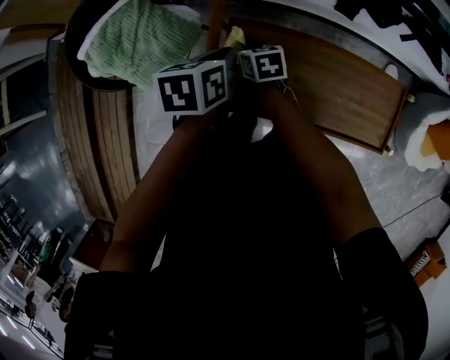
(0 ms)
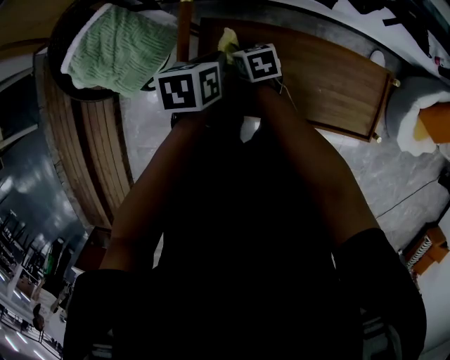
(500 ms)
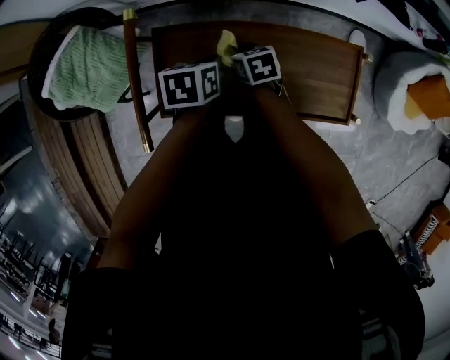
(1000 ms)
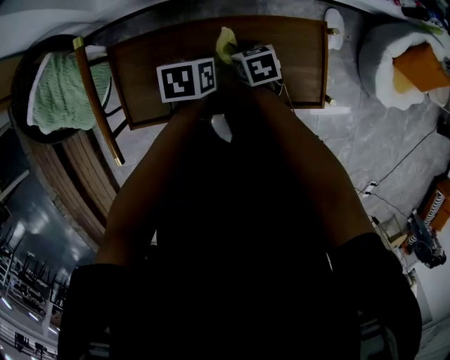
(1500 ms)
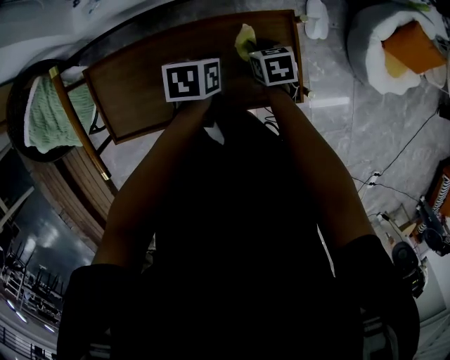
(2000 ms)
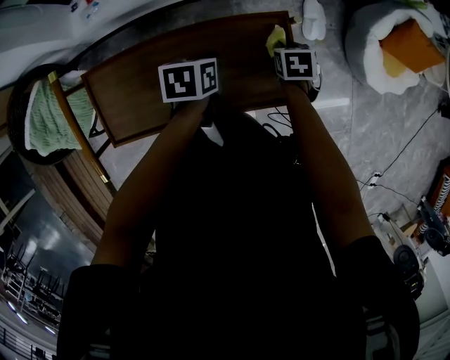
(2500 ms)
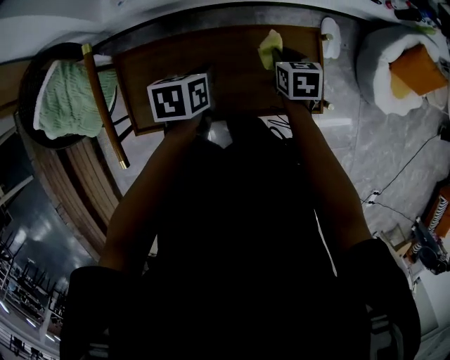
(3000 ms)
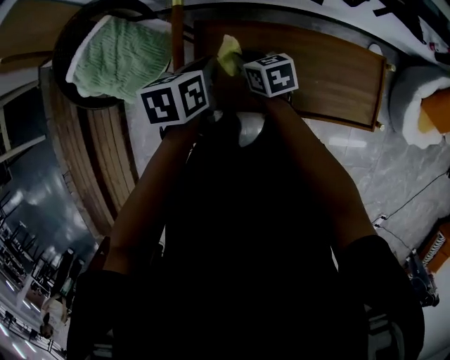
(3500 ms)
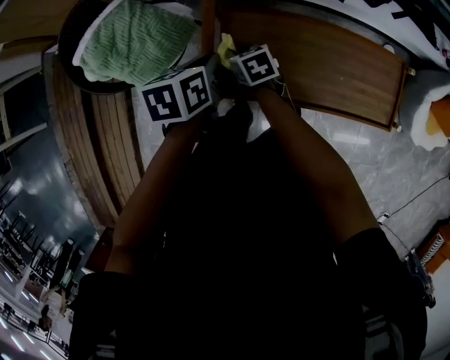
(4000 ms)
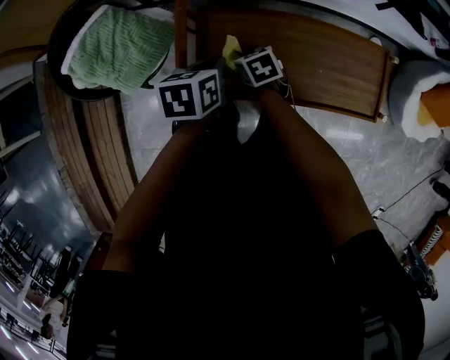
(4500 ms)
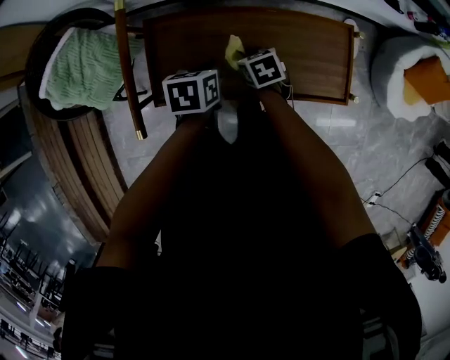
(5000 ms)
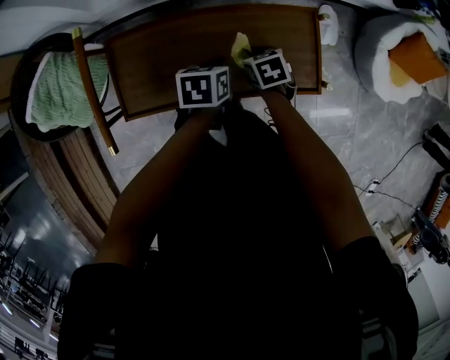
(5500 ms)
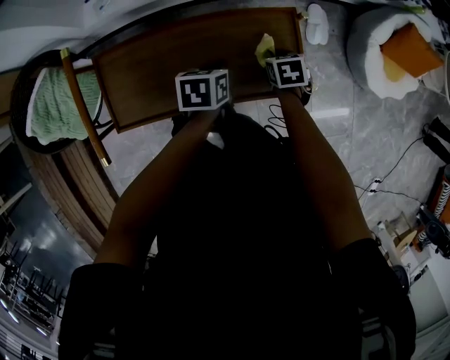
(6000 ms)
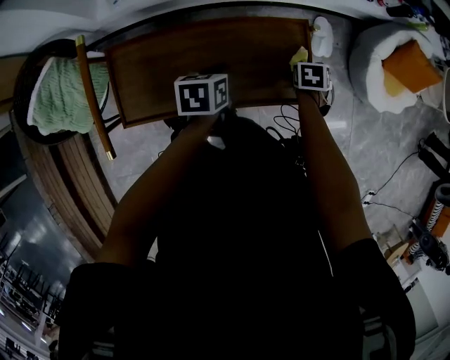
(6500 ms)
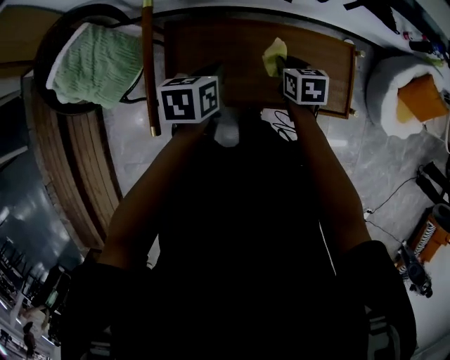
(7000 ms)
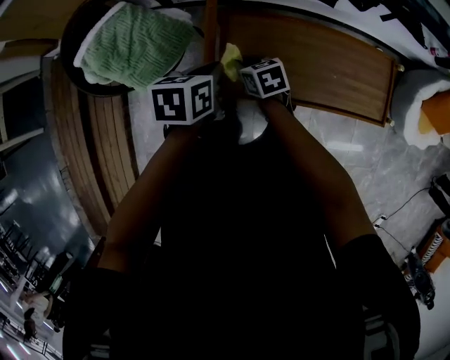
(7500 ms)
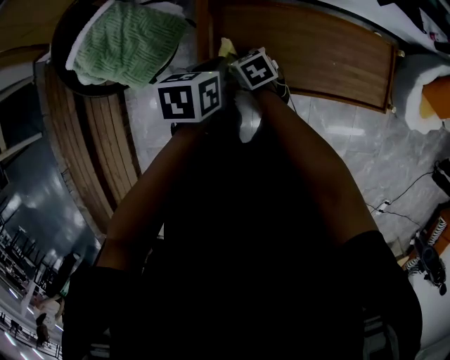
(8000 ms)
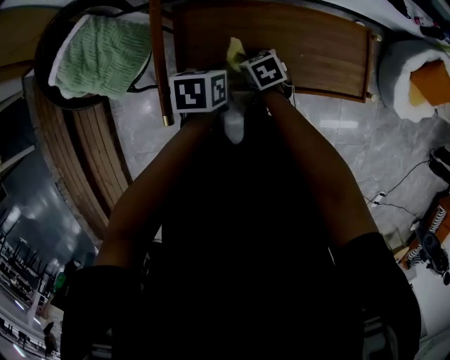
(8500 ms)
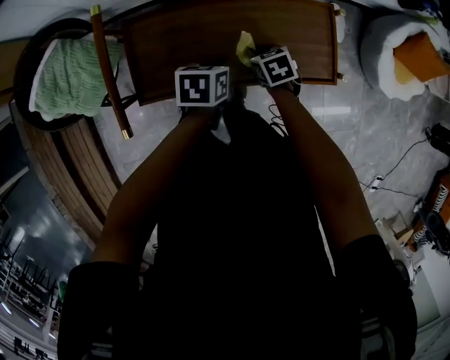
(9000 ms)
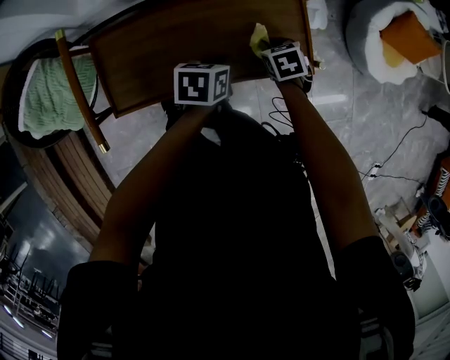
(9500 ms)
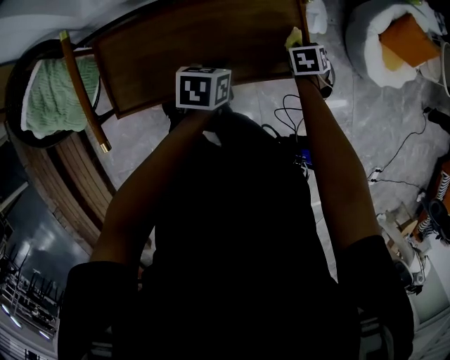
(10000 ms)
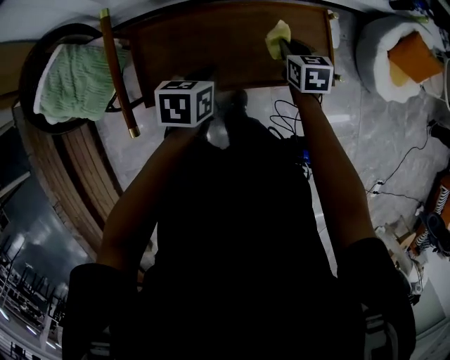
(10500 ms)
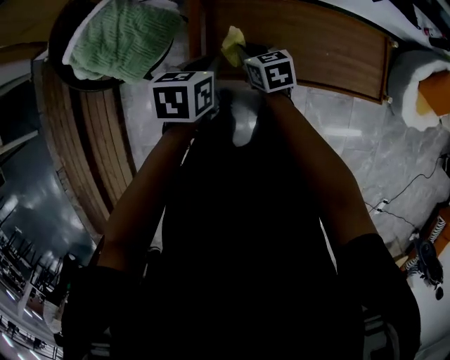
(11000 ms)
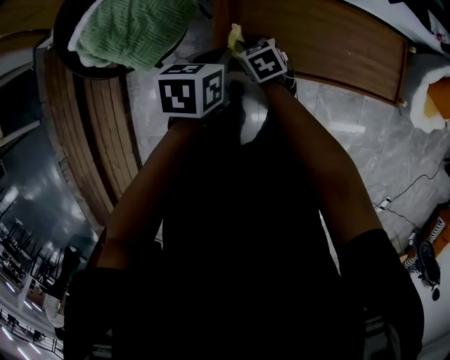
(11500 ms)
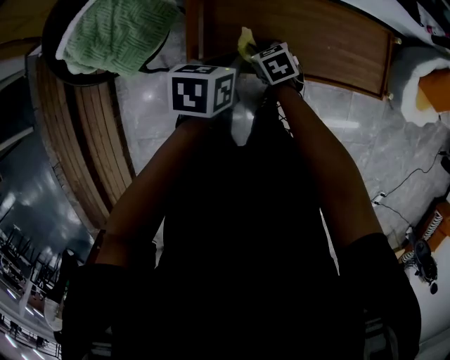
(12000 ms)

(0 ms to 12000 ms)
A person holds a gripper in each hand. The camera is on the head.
0 ms - 2000 ms: The right gripper moves some 50 cm, and swivels about 20 degrees. The left gripper ends up some 40 cm from where it was, and rotates roughly 20 degrees.
2000 ms - 4000 ms: The pair of grippers is taken roughly 40 cm. The left gripper changes its angle by roughly 20 degrees; the right gripper changes its angle by some 30 degrees.
4000 ms - 6000 ms: The right gripper shifts by about 50 cm, and turns by approximately 30 degrees. The left gripper shifts by about 40 cm.
6000 ms - 8000 ms: The right gripper travels upward and back again, approximately 5 cm each way, and changes its angle by approximately 30 degrees. Meanwhile the left gripper ends up about 35 cm from where it was.
8000 ms - 10000 ms: The left gripper shifts by approximately 35 cm, while the right gripper changes place by roughly 50 cm, and swivels some 40 degrees.
10000 ms - 12000 ms: The left gripper ends up approximately 30 cm from where it was; the right gripper goes upward and returns, about 5 cm each way, and swivels approximately 40 degrees.

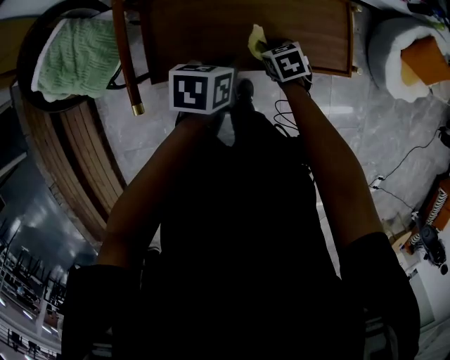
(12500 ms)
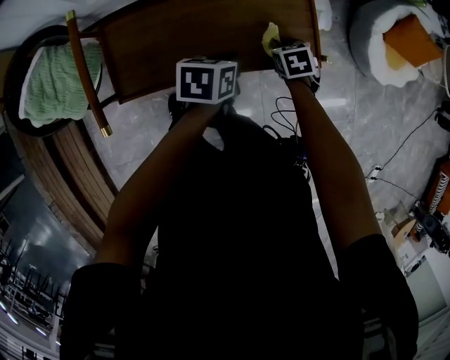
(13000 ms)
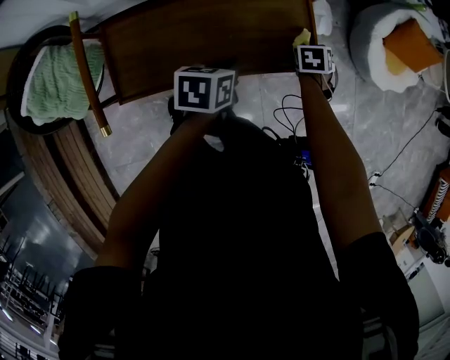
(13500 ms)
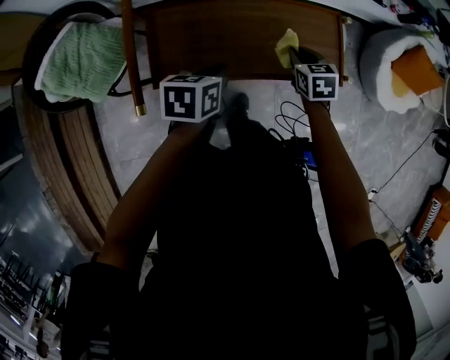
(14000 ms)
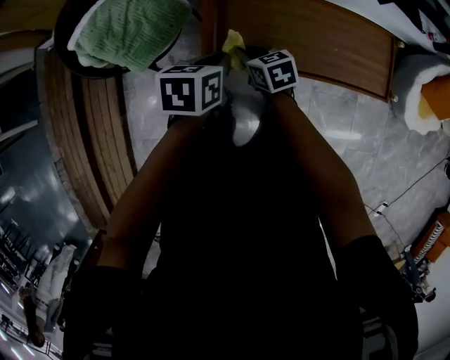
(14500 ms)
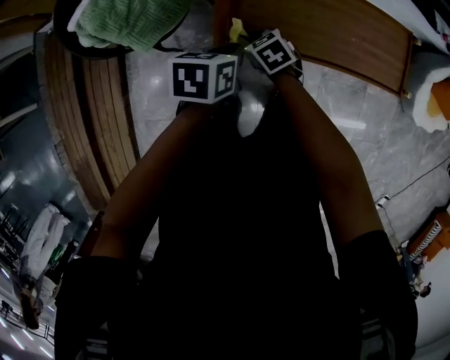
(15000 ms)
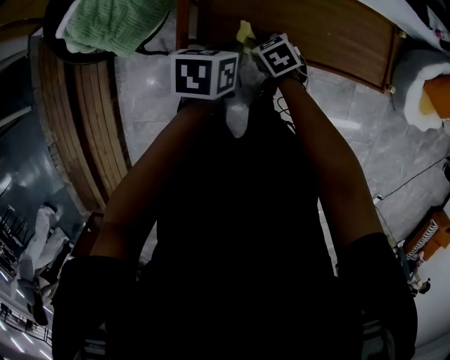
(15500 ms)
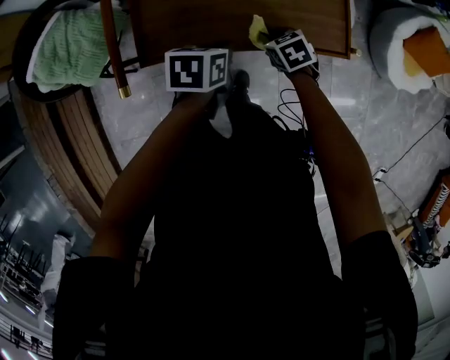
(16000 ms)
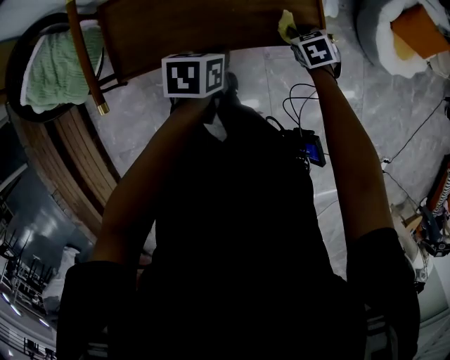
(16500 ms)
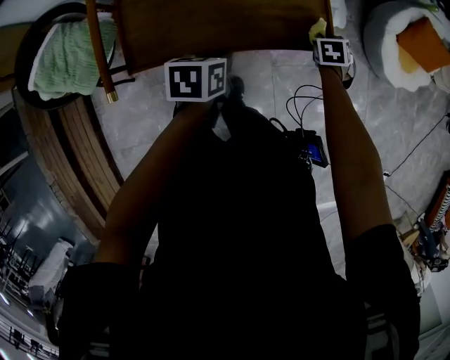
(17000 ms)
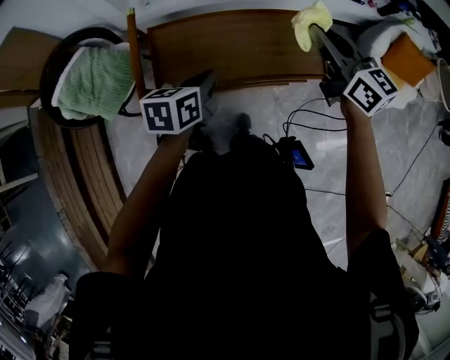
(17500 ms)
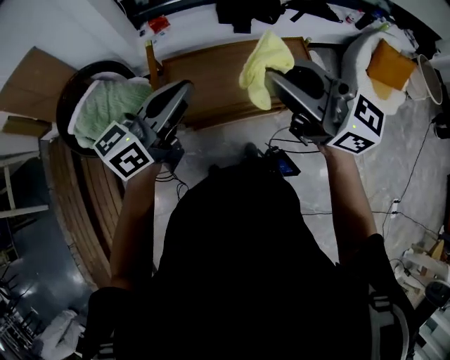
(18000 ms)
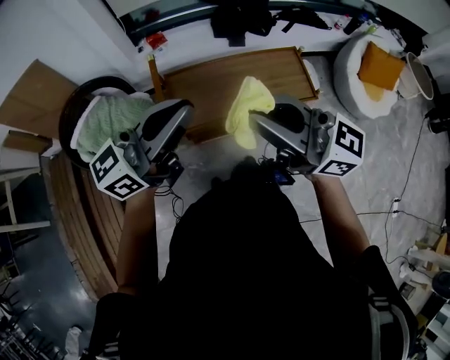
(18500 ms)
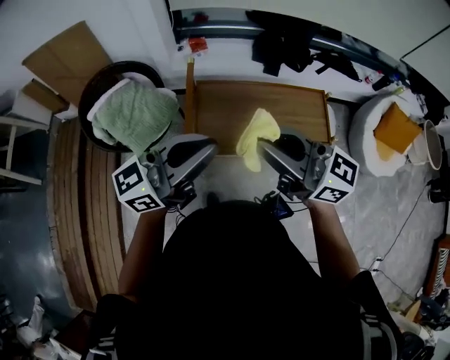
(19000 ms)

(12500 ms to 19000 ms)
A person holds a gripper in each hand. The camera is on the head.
12500 ms - 14500 ms: The left gripper changes place by roughly 20 cm; the right gripper ends up roughly 25 cm from where it was.
14500 ms - 17000 ms: The left gripper shifts by some 30 cm, while the right gripper shifts by about 50 cm, and rotates roughly 50 degrees.
17000 ms - 19000 ms: The right gripper changes place by roughly 70 cm, and tilts its fingers roughly 70 degrees upward; the left gripper shifts approximately 35 cm upward, and tilts its fingers approximately 70 degrees upward.

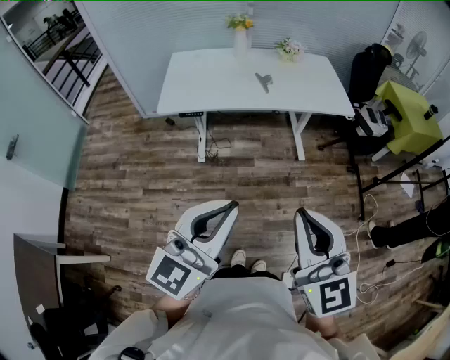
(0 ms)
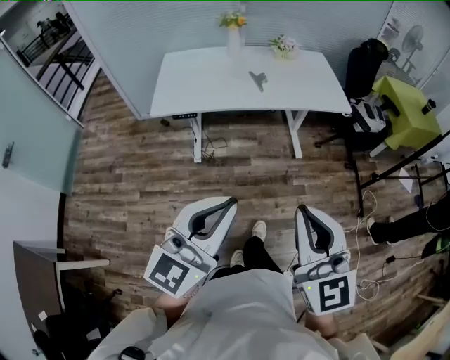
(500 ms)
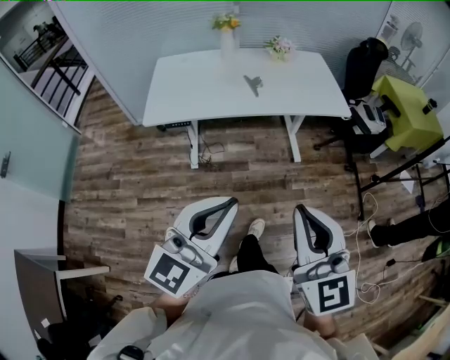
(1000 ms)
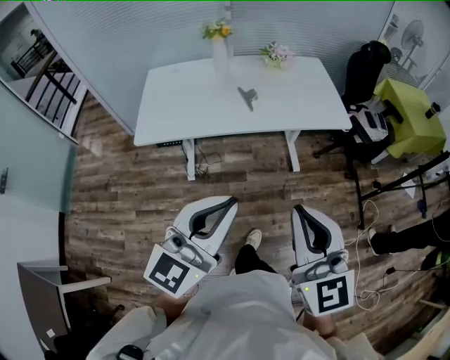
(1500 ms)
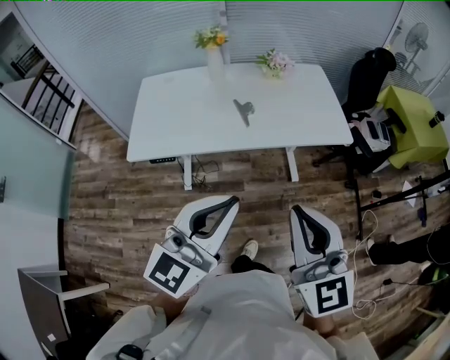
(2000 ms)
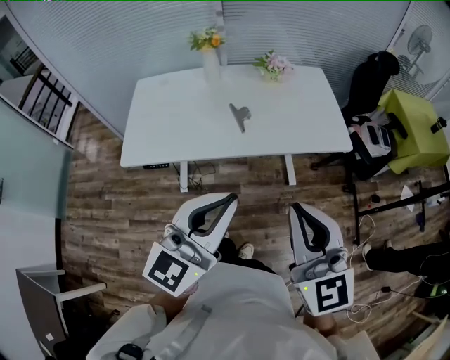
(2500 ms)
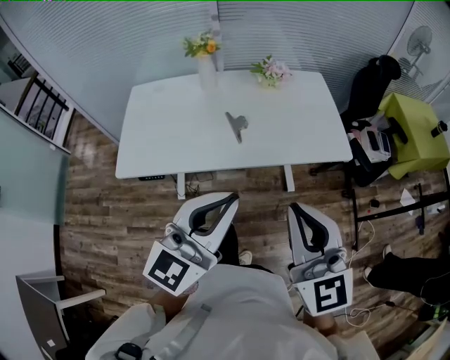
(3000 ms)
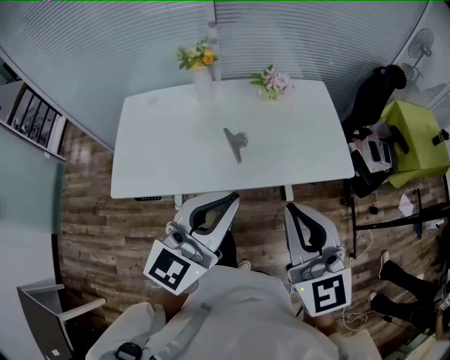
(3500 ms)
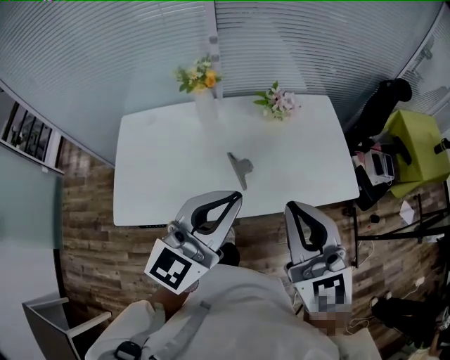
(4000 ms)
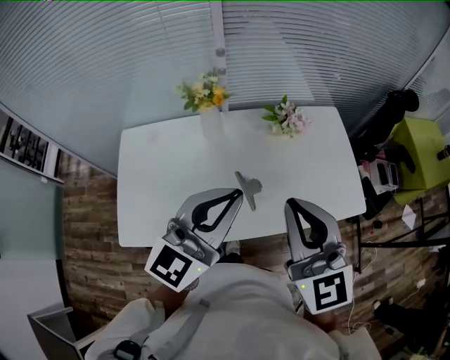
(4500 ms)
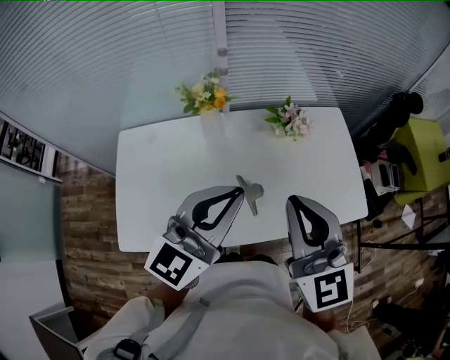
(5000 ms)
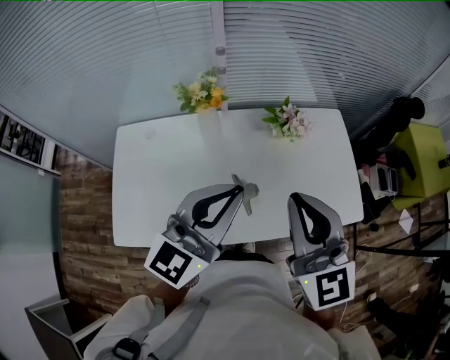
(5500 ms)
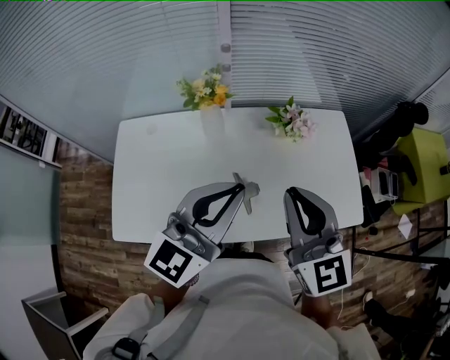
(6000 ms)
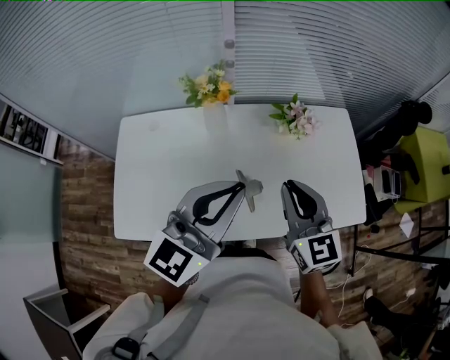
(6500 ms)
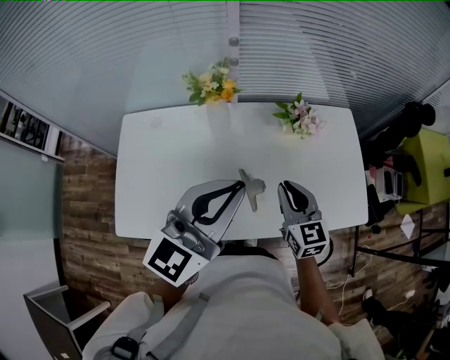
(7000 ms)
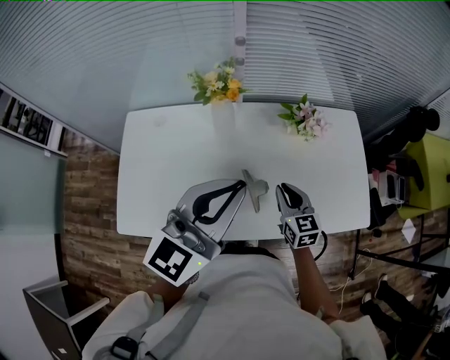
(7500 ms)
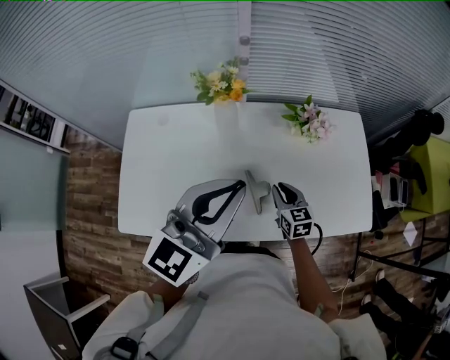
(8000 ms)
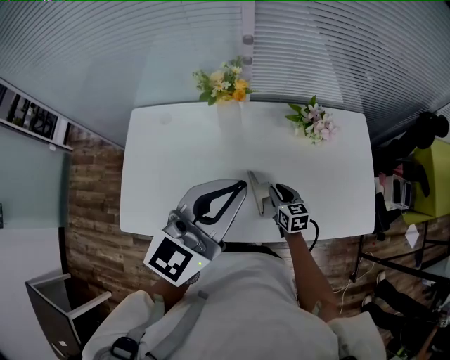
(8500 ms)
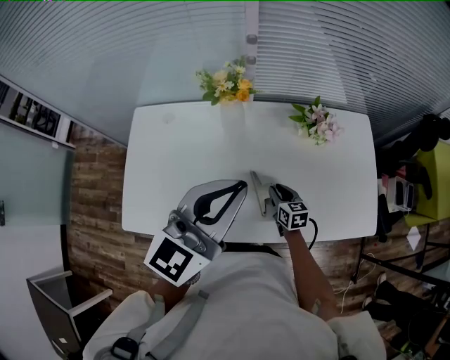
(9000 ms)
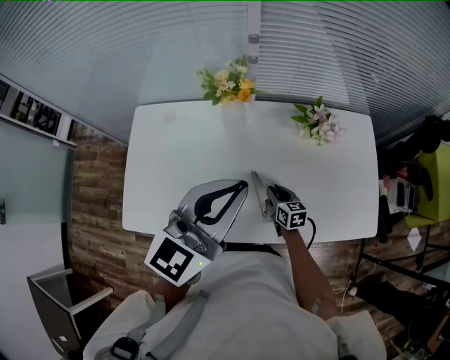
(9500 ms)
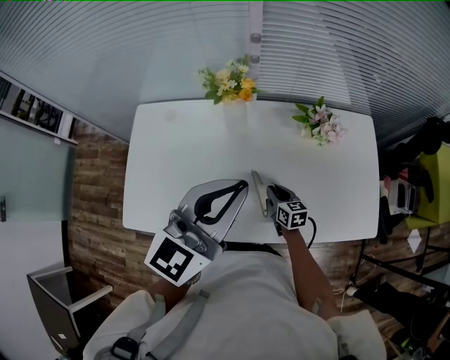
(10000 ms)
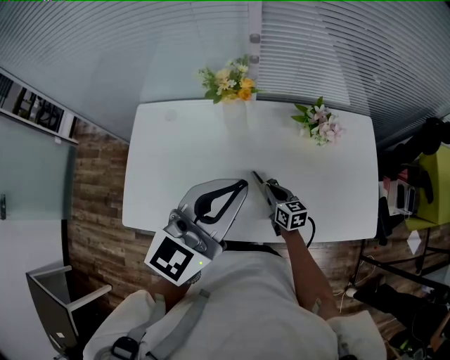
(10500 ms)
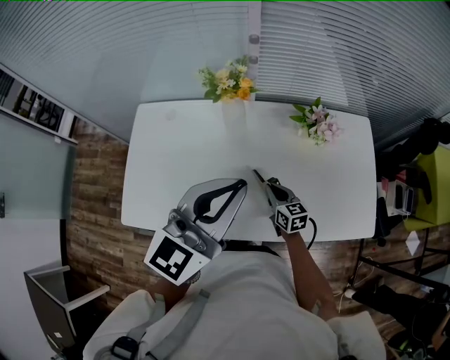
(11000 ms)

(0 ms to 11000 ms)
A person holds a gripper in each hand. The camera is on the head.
0 ms - 2000 ms: Both grippers move forward, about 30 cm.
2000 ms - 3500 ms: The two grippers go approximately 20 cm forward.
3500 ms - 5500 ms: The two grippers go roughly 25 cm forward.
5500 ms - 7500 ms: The right gripper heads downward, covering some 30 cm, and turns by some 30 degrees.
7500 ms - 9000 ms: The right gripper heads downward, covering approximately 15 cm.
9000 ms - 11000 ms: The right gripper closes up.
